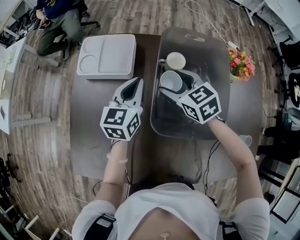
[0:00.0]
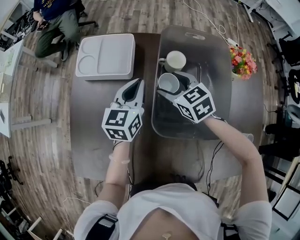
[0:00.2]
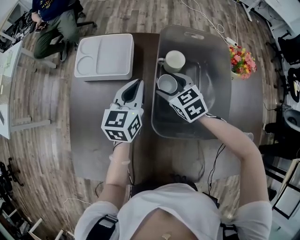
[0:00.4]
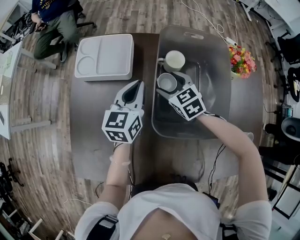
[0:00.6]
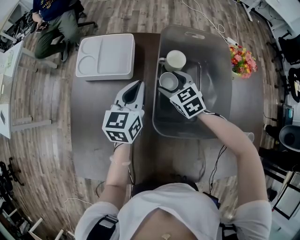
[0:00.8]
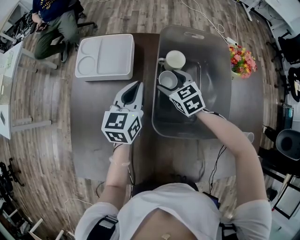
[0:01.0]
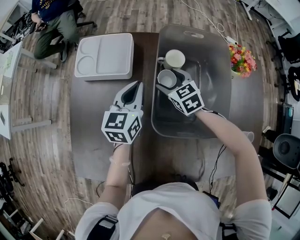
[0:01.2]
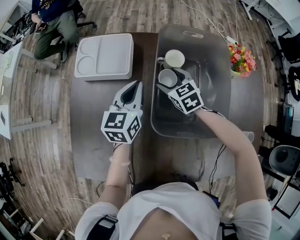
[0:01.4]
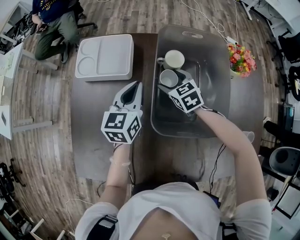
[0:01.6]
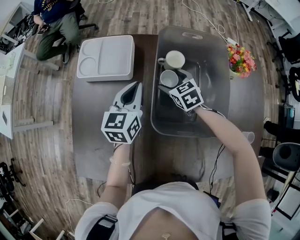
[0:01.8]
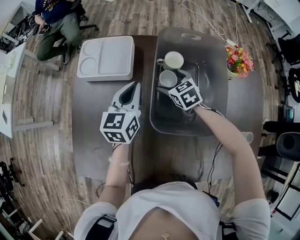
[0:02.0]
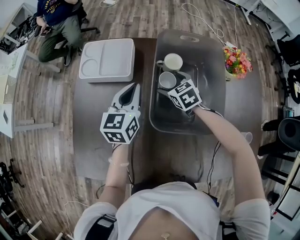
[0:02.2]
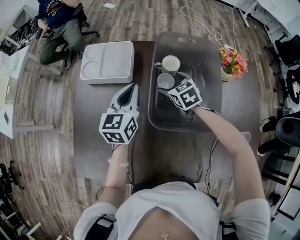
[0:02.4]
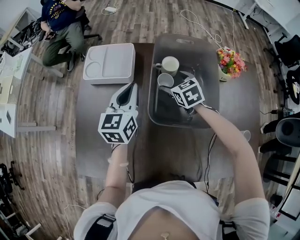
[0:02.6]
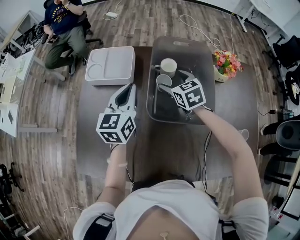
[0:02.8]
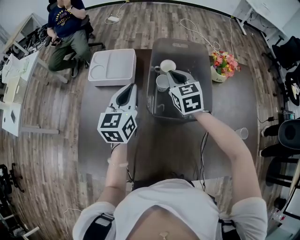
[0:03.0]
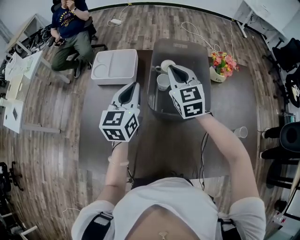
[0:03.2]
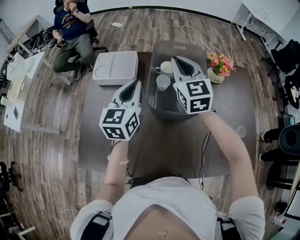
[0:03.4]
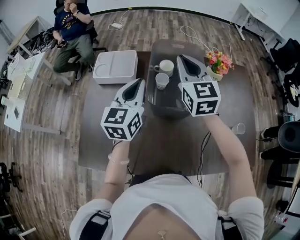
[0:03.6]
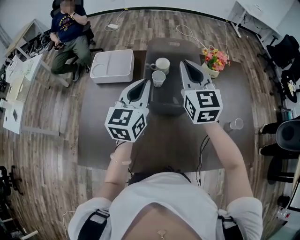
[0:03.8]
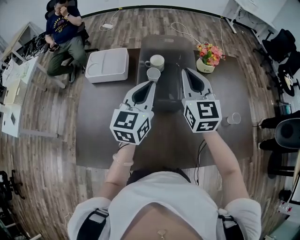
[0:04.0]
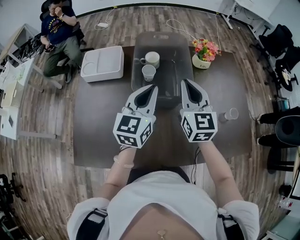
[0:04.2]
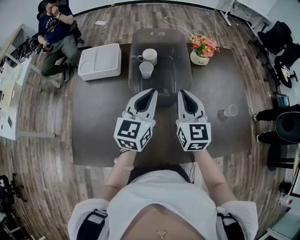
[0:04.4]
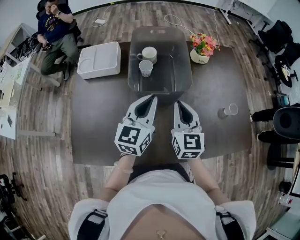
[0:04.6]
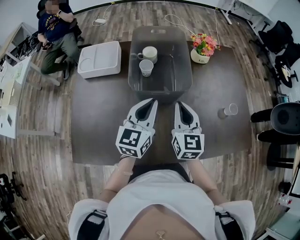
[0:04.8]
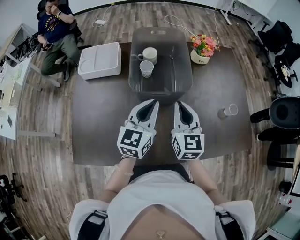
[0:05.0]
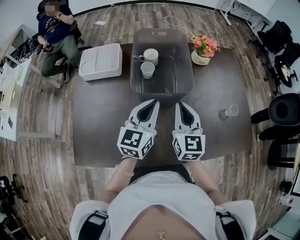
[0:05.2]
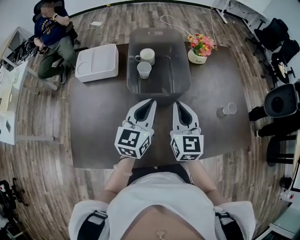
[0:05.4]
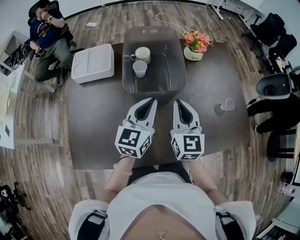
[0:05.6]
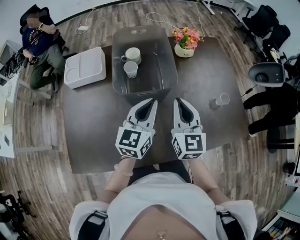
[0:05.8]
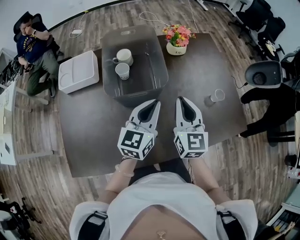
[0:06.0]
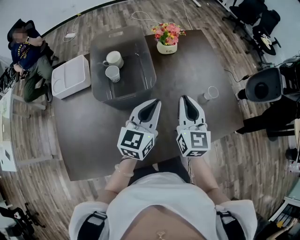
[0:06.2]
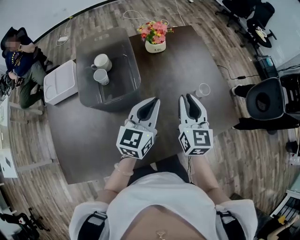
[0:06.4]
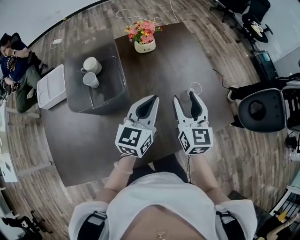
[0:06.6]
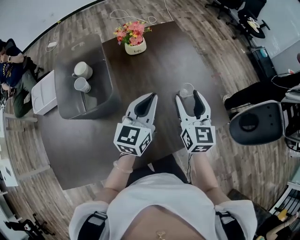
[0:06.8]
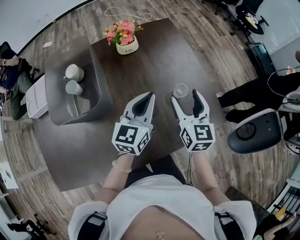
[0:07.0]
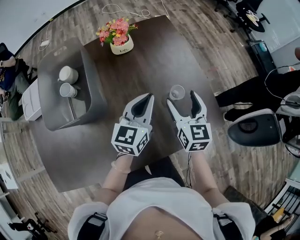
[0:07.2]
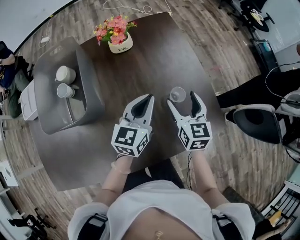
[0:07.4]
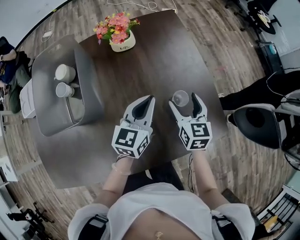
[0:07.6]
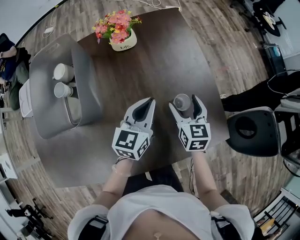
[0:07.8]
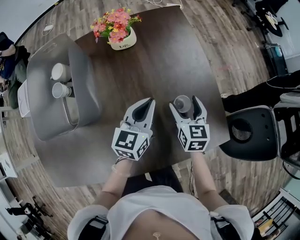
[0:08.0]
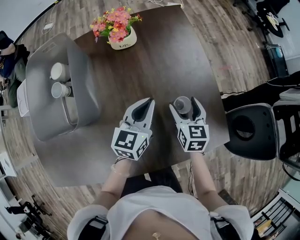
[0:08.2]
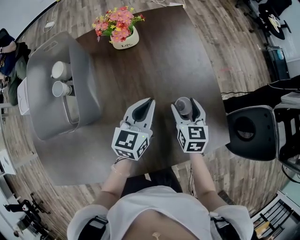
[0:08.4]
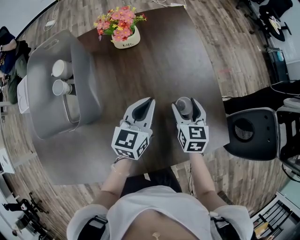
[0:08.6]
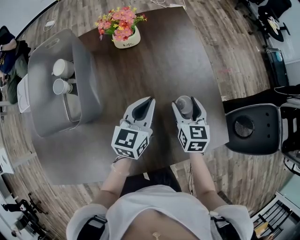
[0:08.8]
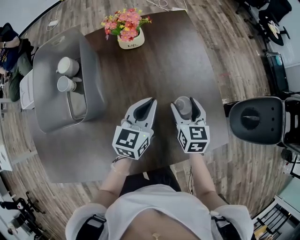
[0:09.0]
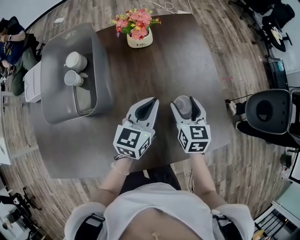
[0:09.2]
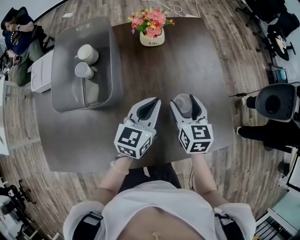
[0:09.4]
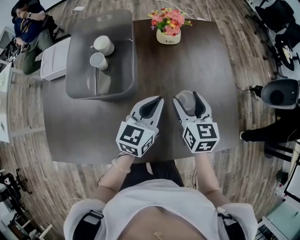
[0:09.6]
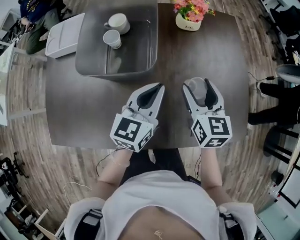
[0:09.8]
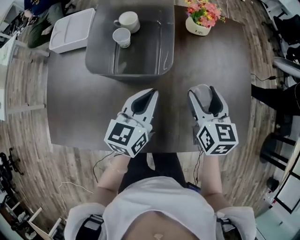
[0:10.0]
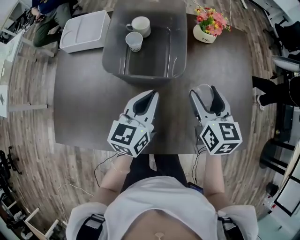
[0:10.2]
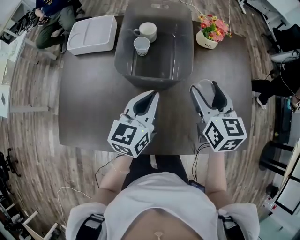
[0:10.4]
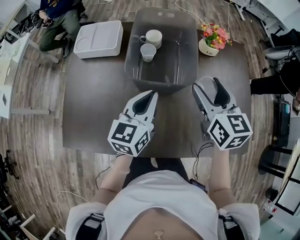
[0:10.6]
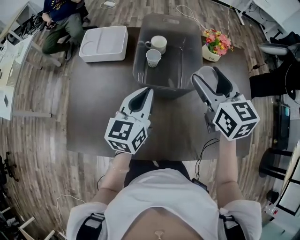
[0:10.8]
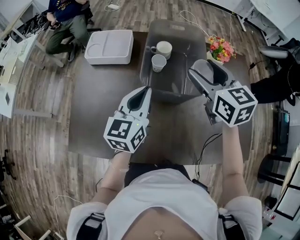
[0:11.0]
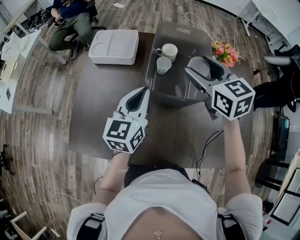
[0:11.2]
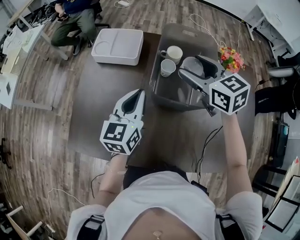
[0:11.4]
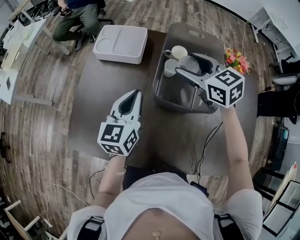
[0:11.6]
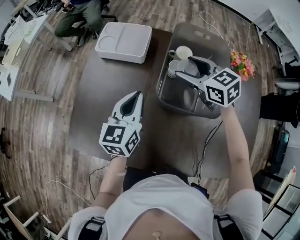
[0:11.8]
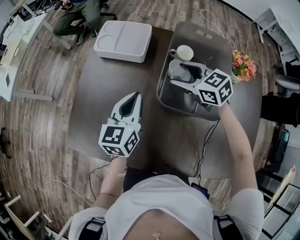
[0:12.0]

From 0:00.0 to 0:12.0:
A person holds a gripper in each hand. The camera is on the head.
From 0:00.0 to 0:01.6: The right gripper heads downward, covering about 10 cm.
From 0:01.6 to 0:03.0: The left gripper goes about 10 cm upward and backward. The right gripper moves upward, about 15 cm, changes its angle by some 20 degrees, and closes up.
From 0:03.0 to 0:04.4: The right gripper travels backward and to the right by approximately 20 cm, and changes its angle by some 30 degrees. The left gripper moves to the right and backward, approximately 20 cm.
From 0:04.4 to 0:06.0: Both grippers move to the right, roughly 10 cm.
From 0:06.0 to 0:07.6: The left gripper is displaced to the right and forward by some 30 cm, while the right gripper travels to the right, forward and downward by approximately 35 cm, swivels about 20 degrees, and opens its fingers.
From 0:09.0 to 0:10.4: The right gripper heads to the left and upward, covering some 30 cm, and turns by roughly 20 degrees, while the left gripper shifts some 30 cm to the left.
From 0:10.4 to 0:12.0: The right gripper changes place by about 30 cm, and swivels roughly 50 degrees; the left gripper moves some 20 cm.

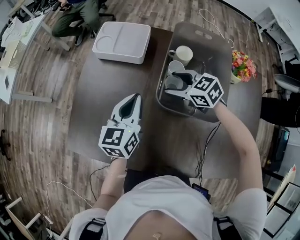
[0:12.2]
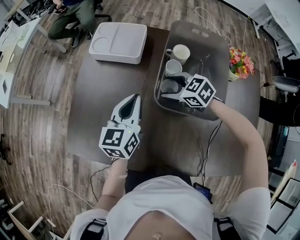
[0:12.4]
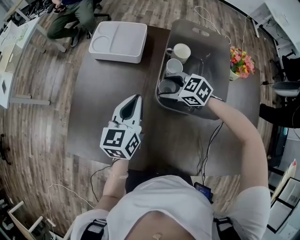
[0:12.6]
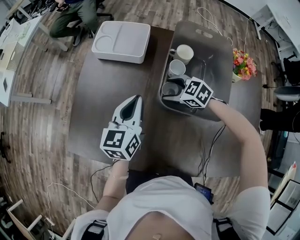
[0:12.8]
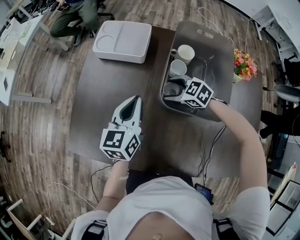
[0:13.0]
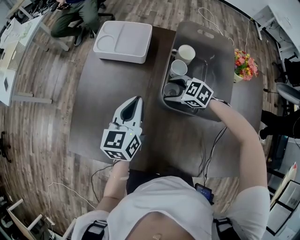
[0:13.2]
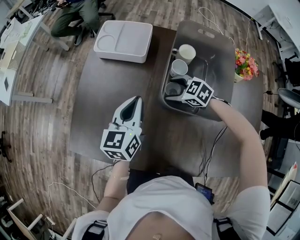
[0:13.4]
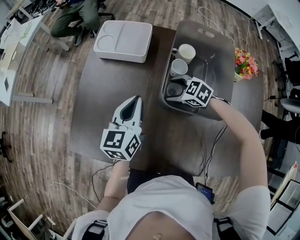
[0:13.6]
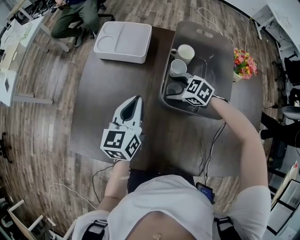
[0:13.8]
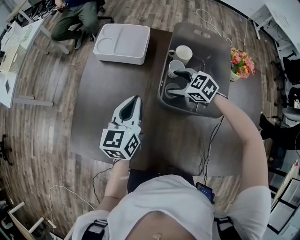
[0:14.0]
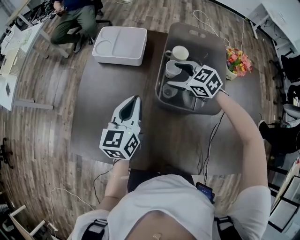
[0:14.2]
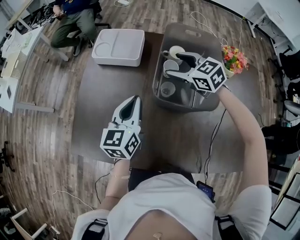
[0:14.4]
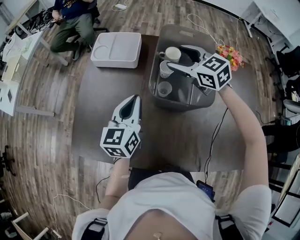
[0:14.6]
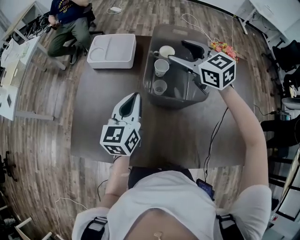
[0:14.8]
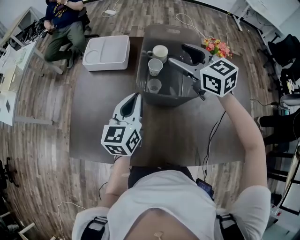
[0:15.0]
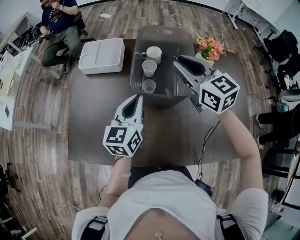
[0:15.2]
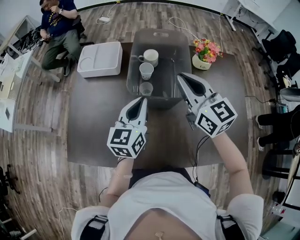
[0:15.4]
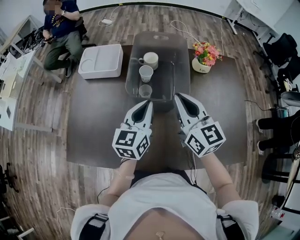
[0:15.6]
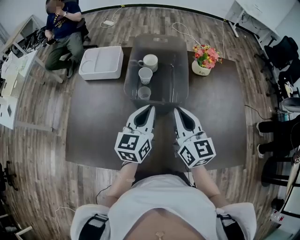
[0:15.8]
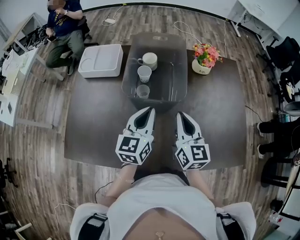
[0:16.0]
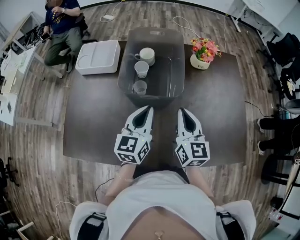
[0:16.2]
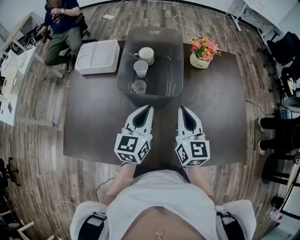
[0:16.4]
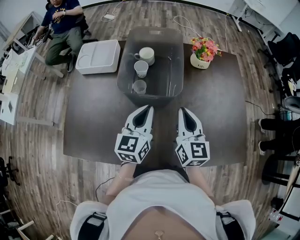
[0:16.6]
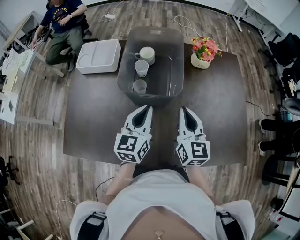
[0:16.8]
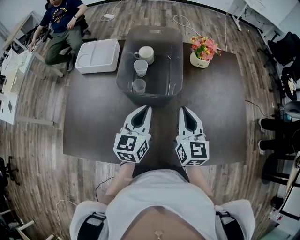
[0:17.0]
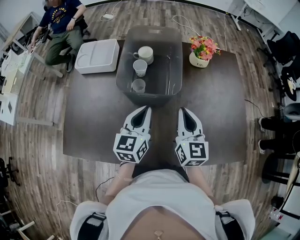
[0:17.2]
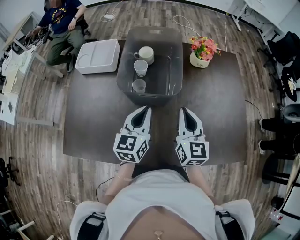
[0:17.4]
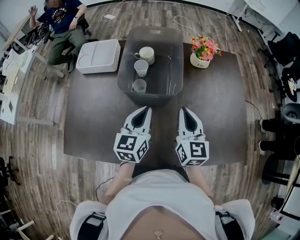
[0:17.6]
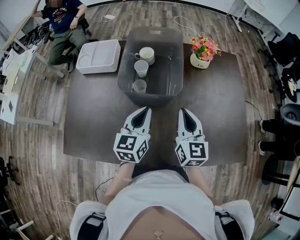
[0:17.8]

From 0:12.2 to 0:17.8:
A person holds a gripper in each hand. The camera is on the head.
From 0:12.2 to 0:13.6: The right gripper heads downward, covering some 10 cm.
From 0:13.6 to 0:15.0: The right gripper is displaced upward by approximately 30 cm, and tilts its fingers roughly 30 degrees upward. The left gripper shifts approximately 10 cm upward and backward.
From 0:15.0 to 0:16.4: The right gripper moves backward, to the right and downward, about 20 cm, rotates some 40 degrees, and closes, while the left gripper moves to the right, about 10 cm.
From 0:16.4 to 0:17.8: The grippers stay close to where they were, moving slightly.

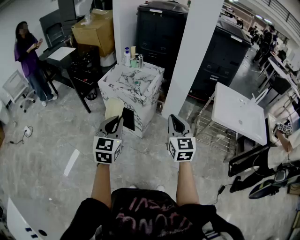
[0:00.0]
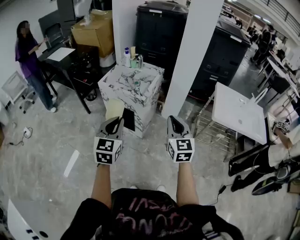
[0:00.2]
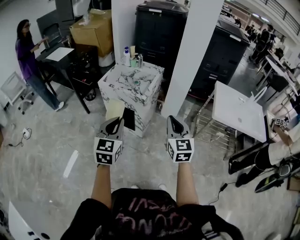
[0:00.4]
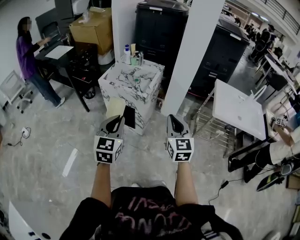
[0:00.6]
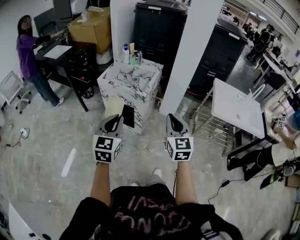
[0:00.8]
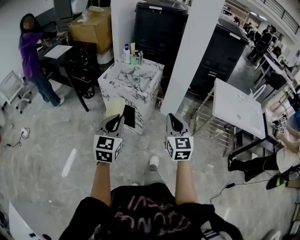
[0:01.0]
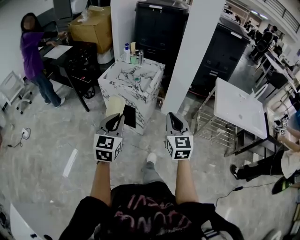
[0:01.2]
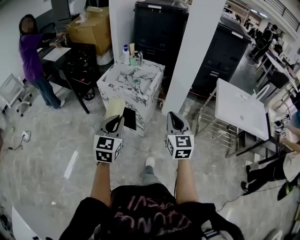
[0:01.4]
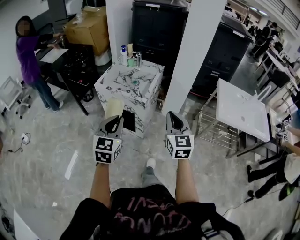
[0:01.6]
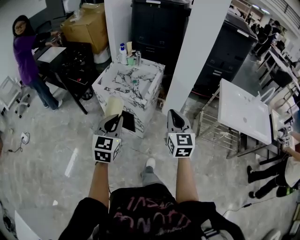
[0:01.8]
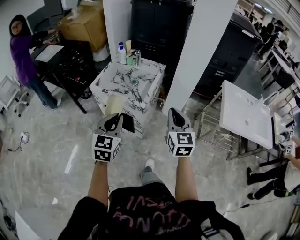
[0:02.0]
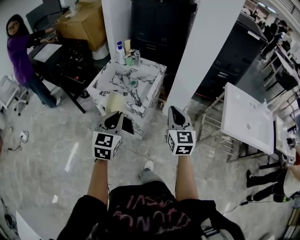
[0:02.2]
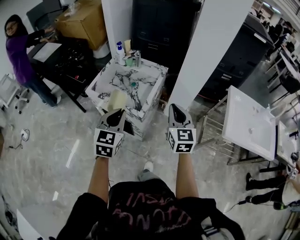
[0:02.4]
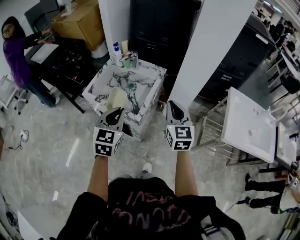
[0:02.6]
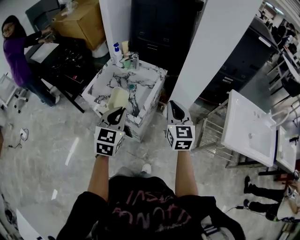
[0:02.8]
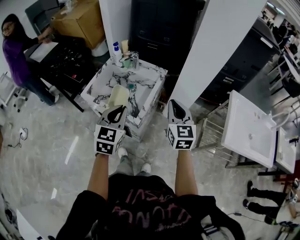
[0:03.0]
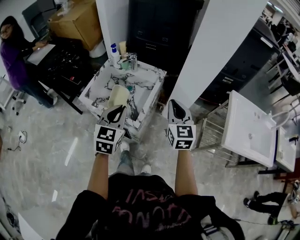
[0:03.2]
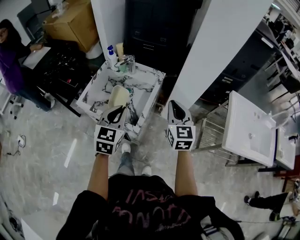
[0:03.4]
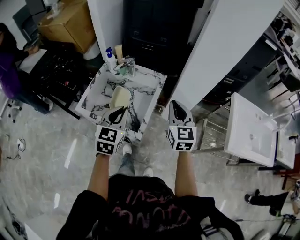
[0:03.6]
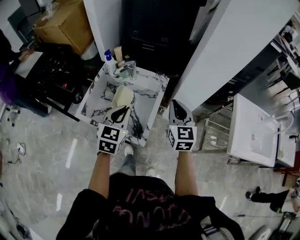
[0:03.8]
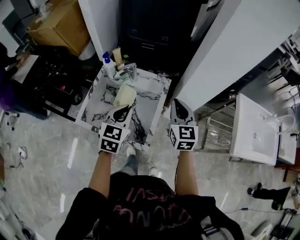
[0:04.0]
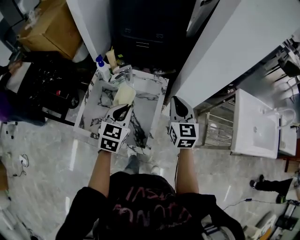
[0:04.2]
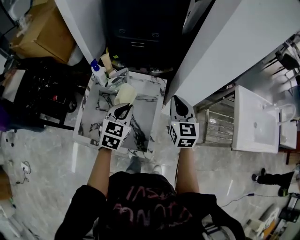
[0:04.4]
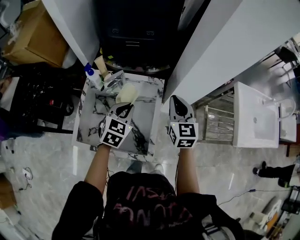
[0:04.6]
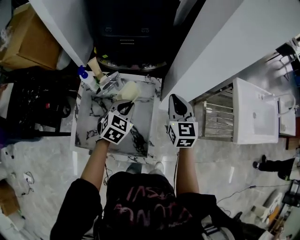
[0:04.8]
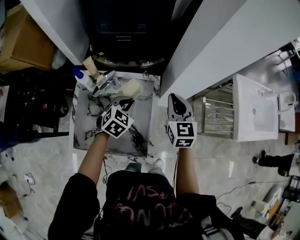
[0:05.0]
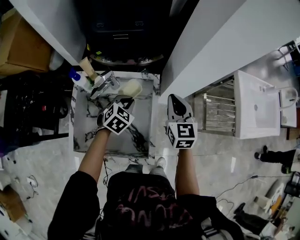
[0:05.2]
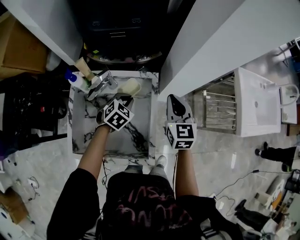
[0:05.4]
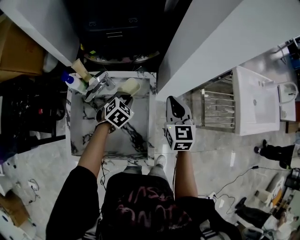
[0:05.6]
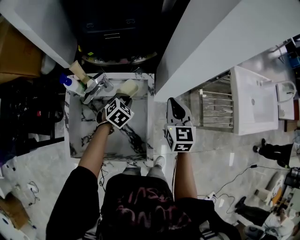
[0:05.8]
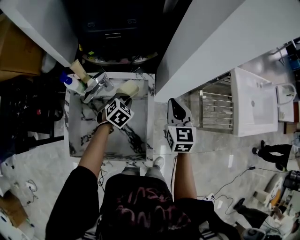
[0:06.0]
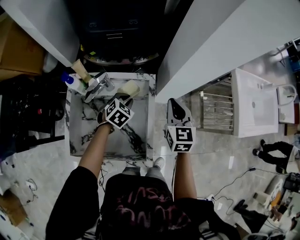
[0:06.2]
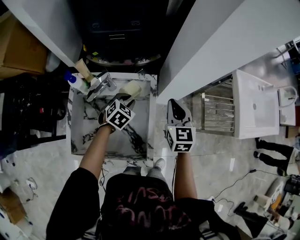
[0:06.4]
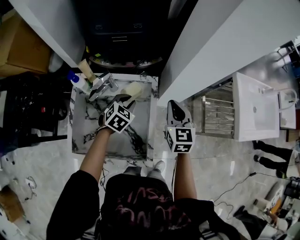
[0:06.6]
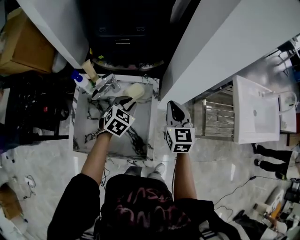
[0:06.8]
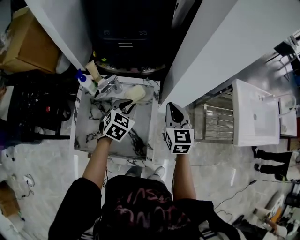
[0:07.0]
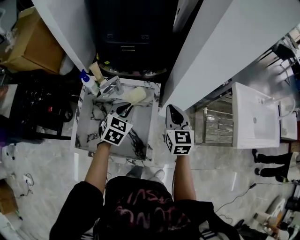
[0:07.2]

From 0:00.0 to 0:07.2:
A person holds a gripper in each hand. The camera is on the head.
From 0:00.0 to 0:01.4: The right gripper changes place by approximately 5 cm; the left gripper ends up approximately 5 cm from where it was.
From 0:01.4 to 0:02.8: Both grippers travel together forward, approximately 30 cm.
From 0:02.8 to 0:04.4: The grippers both shift forward by about 25 cm. The left gripper turns by some 20 degrees.
From 0:04.4 to 0:05.8: The right gripper moves downward, approximately 10 cm, while the left gripper travels downward and forward by about 20 cm, and swivels roughly 40 degrees.
From 0:05.8 to 0:07.2: The right gripper changes place by about 5 cm. Meanwhile the left gripper is displaced upward and backward by some 15 cm, and rotates approximately 20 degrees.
